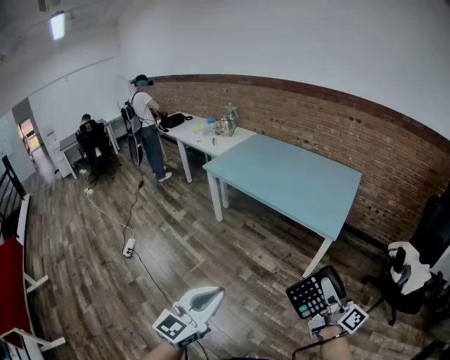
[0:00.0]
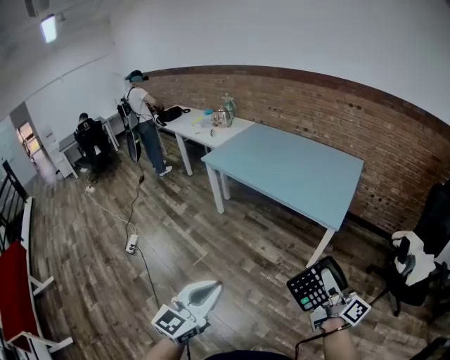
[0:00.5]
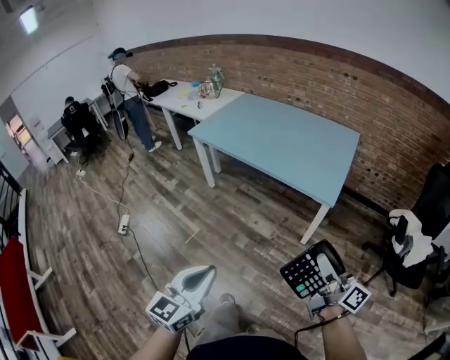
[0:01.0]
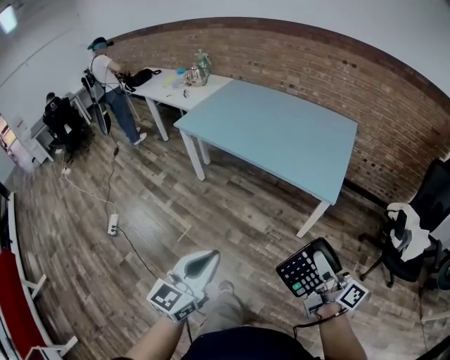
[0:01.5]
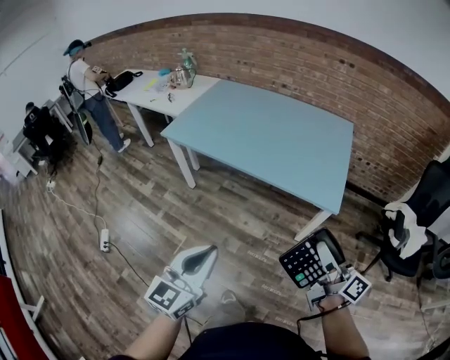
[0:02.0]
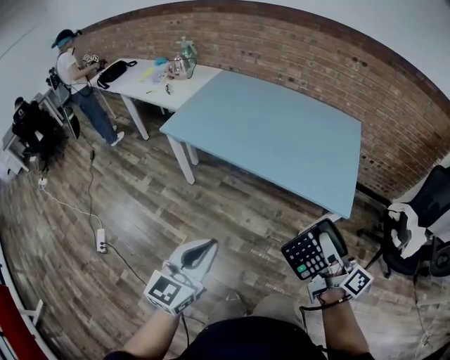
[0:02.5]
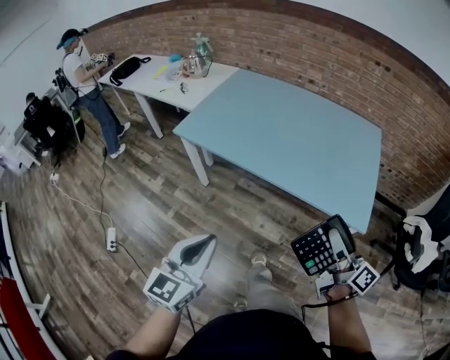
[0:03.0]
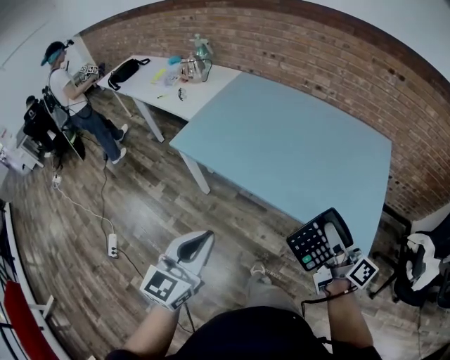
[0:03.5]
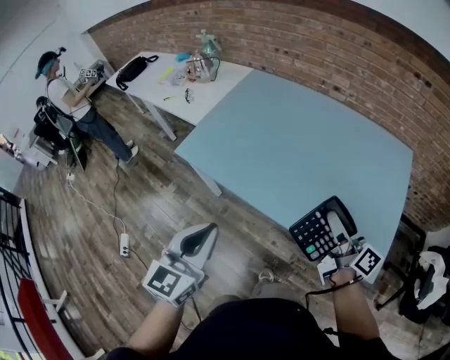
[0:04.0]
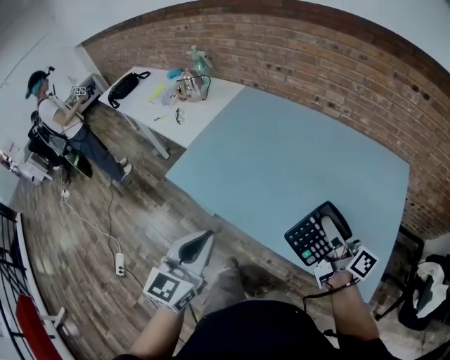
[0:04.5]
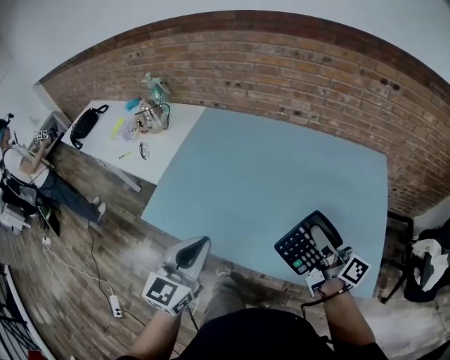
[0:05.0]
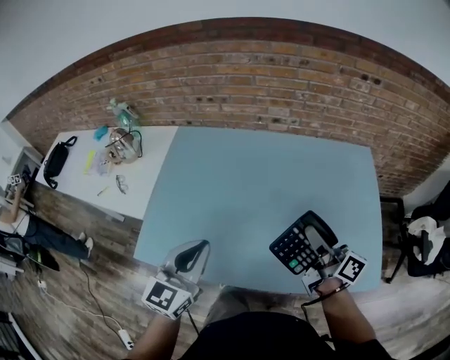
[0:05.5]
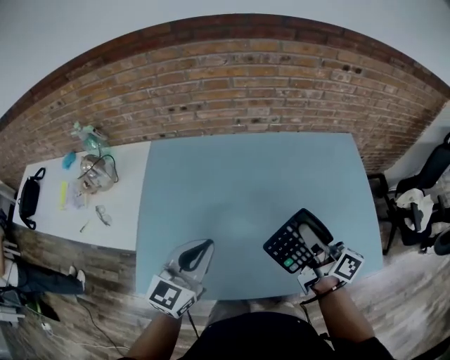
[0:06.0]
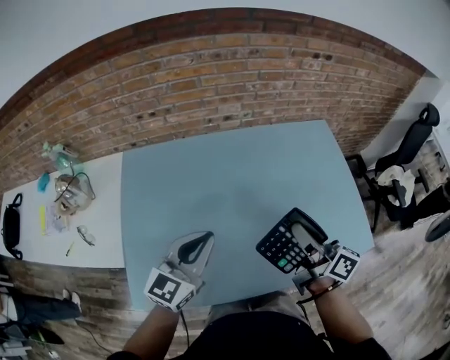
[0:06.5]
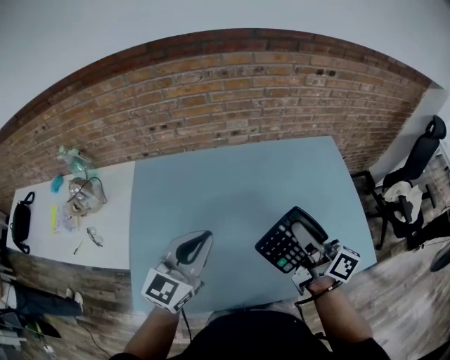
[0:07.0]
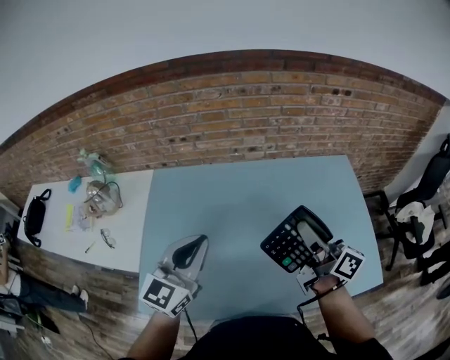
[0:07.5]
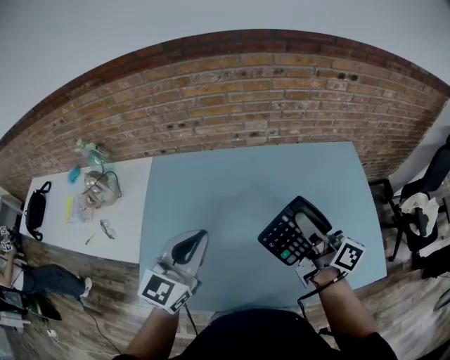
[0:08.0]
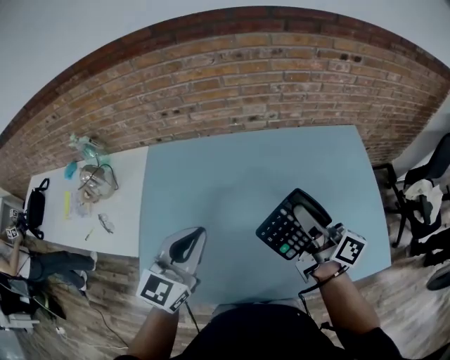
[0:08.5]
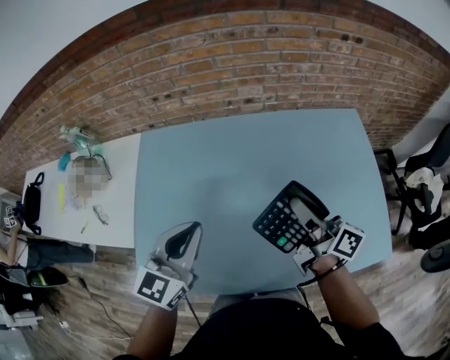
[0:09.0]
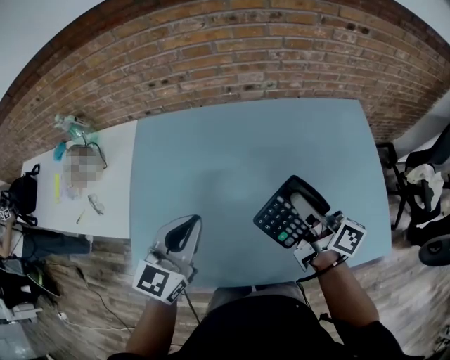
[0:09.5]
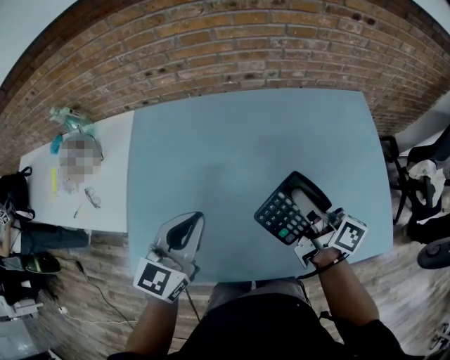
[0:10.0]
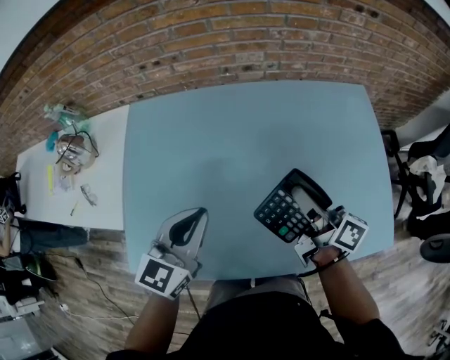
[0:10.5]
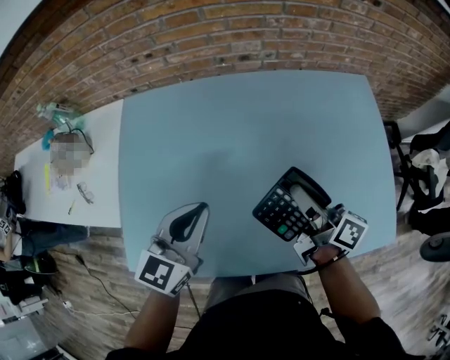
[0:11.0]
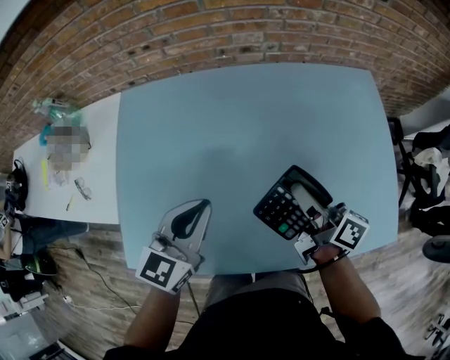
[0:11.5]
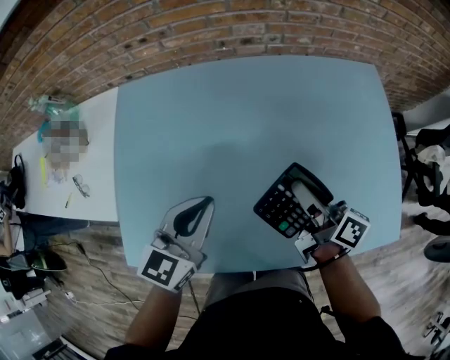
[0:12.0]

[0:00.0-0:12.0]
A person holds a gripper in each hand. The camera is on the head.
0:00.0 to 0:02.0: Both grippers travel together forward, roughly 20 cm.
0:02.0 to 0:04.0: The two grippers go approximately 40 cm forward.
0:04.0 to 0:06.0: The right gripper ends up about 20 cm from where it was, and changes its angle by about 30 degrees, while the left gripper moves about 35 cm, and swivels some 40 degrees.
0:06.0 to 0:08.0: The right gripper shifts about 5 cm forward. Meanwhile the left gripper shifts some 5 cm upward and forward.
0:08.0 to 0:10.0: Both grippers move downward, some 10 cm.
0:10.0 to 0:12.0: Both grippers travel together downward, about 5 cm.

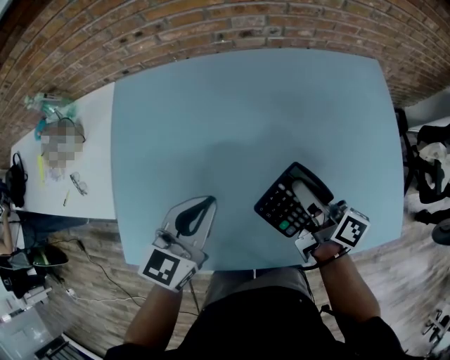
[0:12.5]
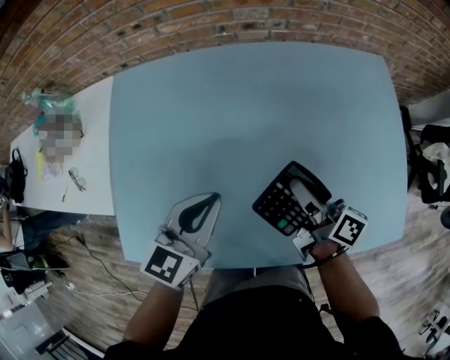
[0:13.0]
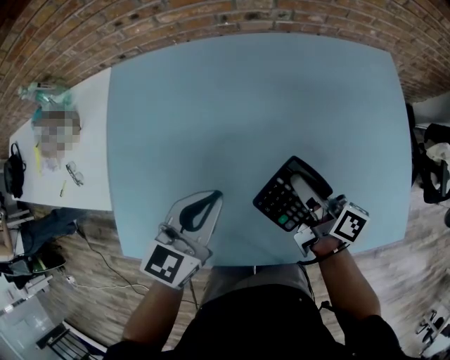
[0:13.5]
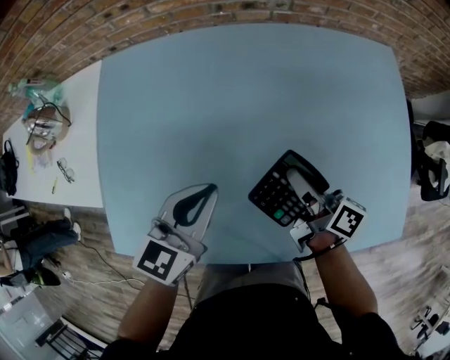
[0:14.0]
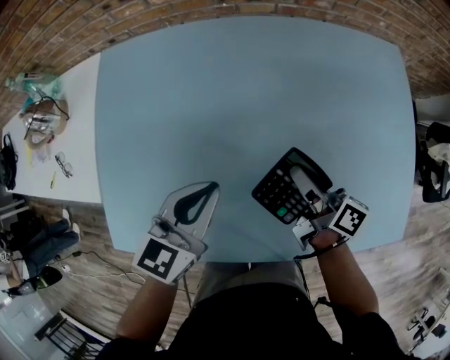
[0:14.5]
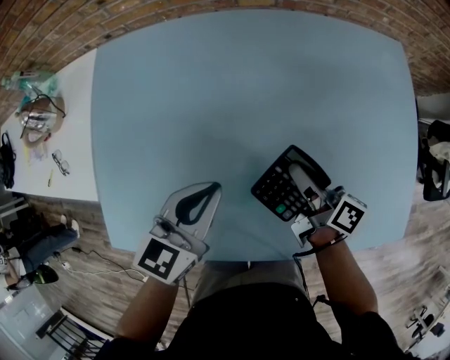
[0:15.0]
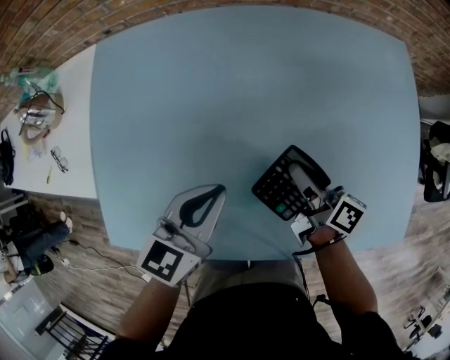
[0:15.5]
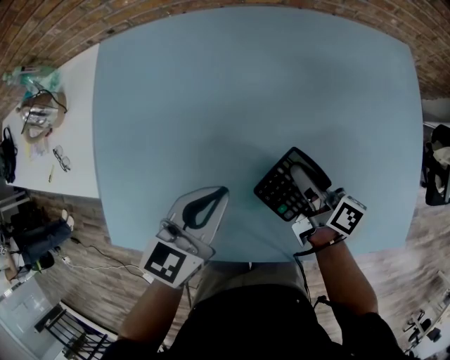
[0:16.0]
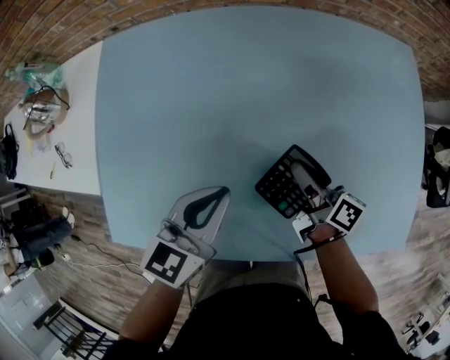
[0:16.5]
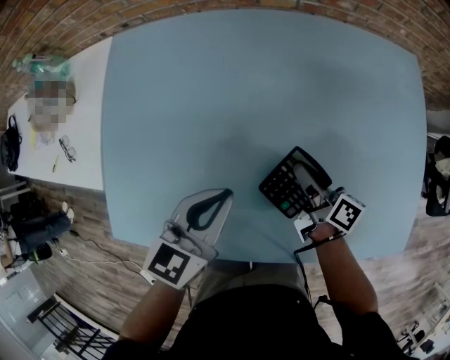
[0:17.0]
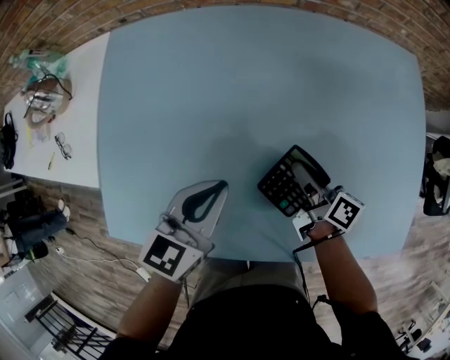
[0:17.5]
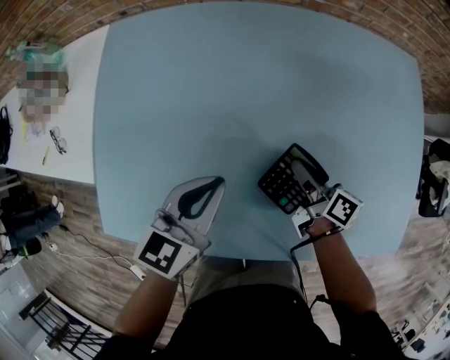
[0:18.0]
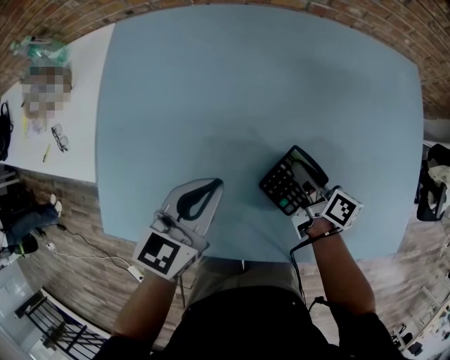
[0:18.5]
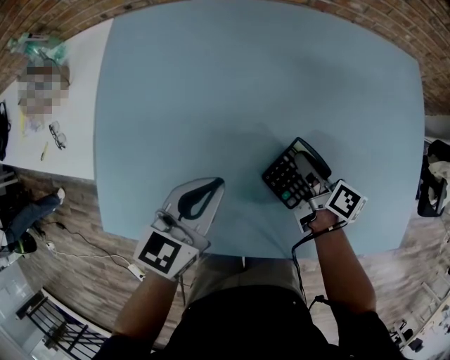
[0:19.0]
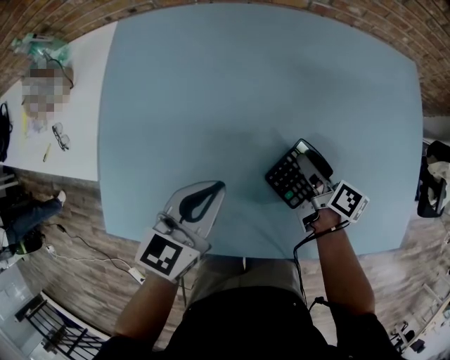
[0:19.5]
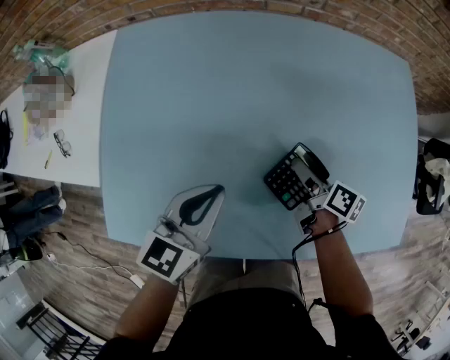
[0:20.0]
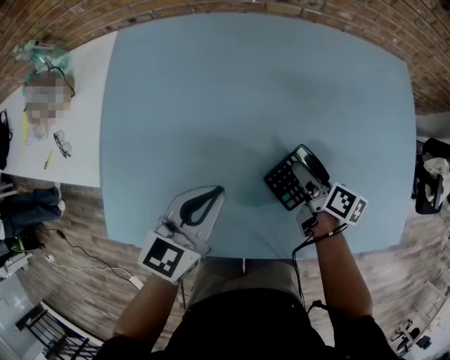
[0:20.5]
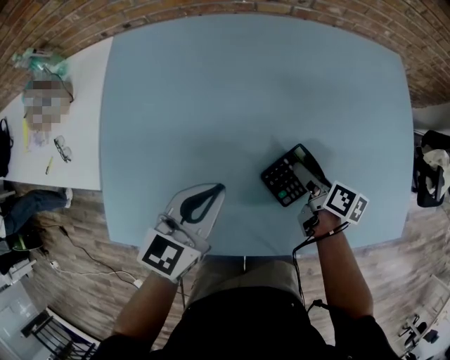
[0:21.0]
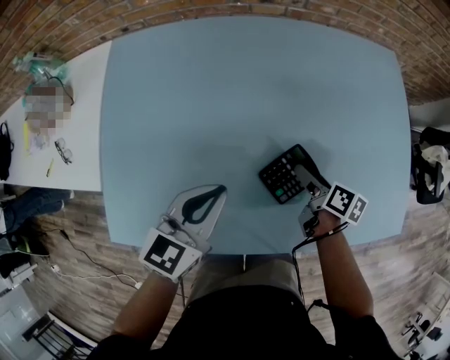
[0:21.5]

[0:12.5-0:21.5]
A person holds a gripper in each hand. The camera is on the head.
0:12.5 to 0:14.5: The right gripper moves downward, approximately 5 cm.
0:14.5 to 0:17.0: The right gripper moves downward, roughly 5 cm.
0:17.0 to 0:19.5: The grippers move only a little.
0:19.5 to 0:21.5: The right gripper ends up about 5 cm from where it was, and opens its fingers.

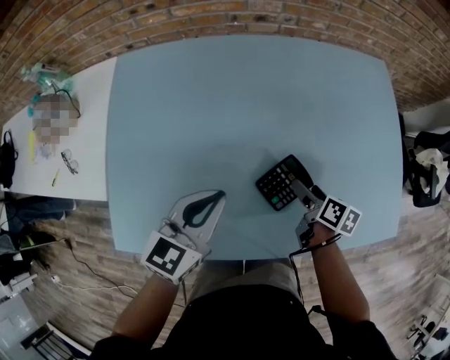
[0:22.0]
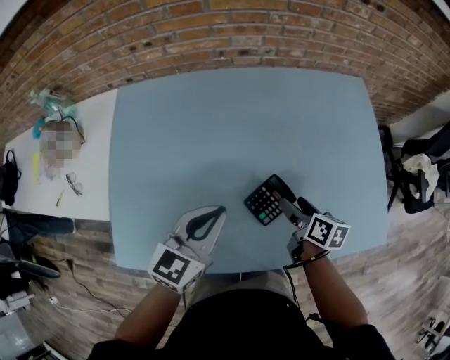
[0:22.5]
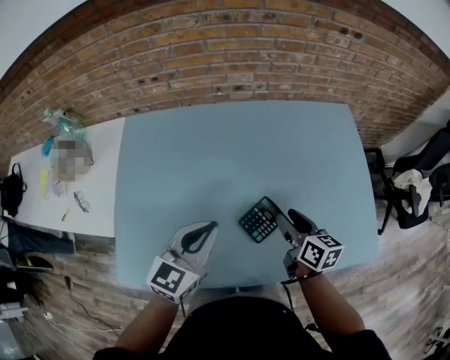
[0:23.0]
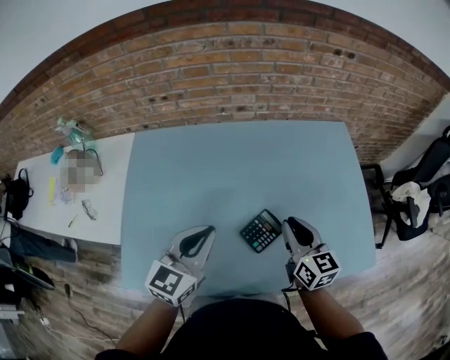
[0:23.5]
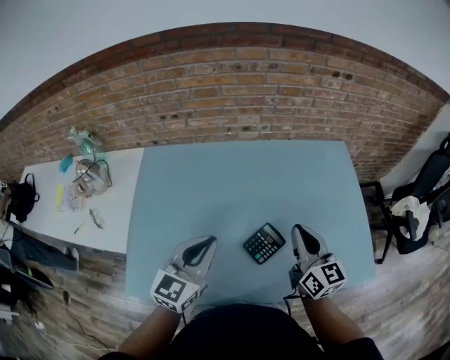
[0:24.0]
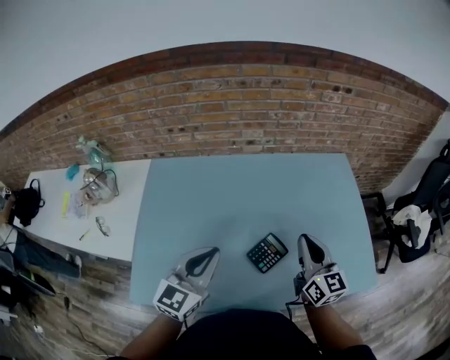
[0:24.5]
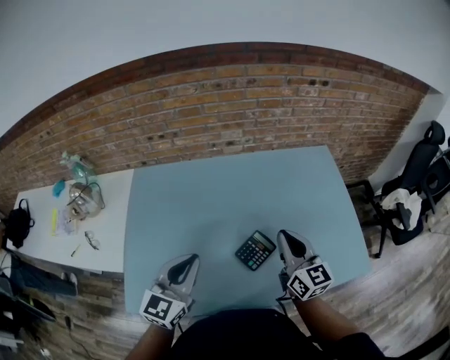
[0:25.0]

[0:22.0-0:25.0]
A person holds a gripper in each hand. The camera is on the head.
0:22.0 to 0:23.5: The left gripper heads upward, covering about 10 cm. The right gripper is displaced upward by about 20 cm, rotates roughly 50 degrees, and closes up.
0:23.5 to 0:25.0: The right gripper travels upward by approximately 5 cm. Meanwhile the left gripper moves roughly 5 cm.

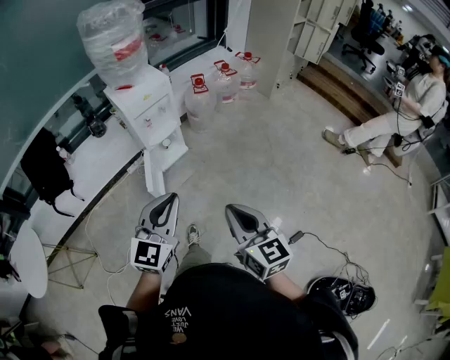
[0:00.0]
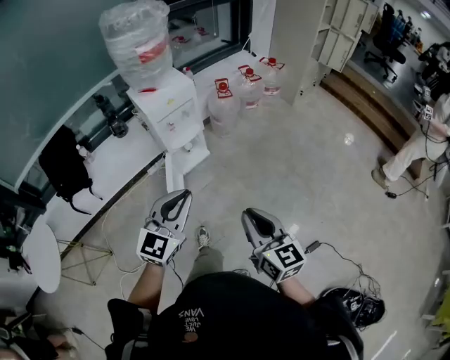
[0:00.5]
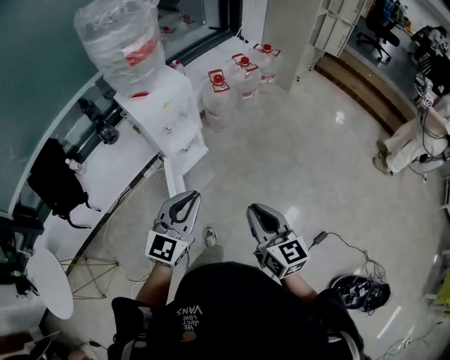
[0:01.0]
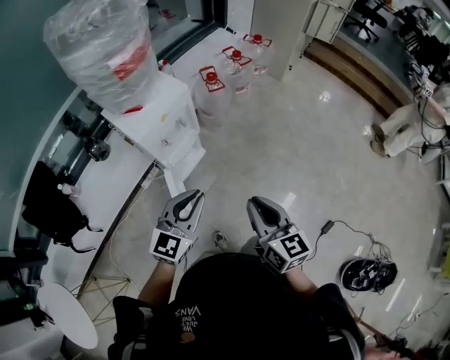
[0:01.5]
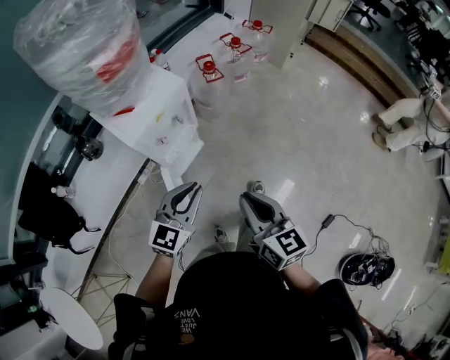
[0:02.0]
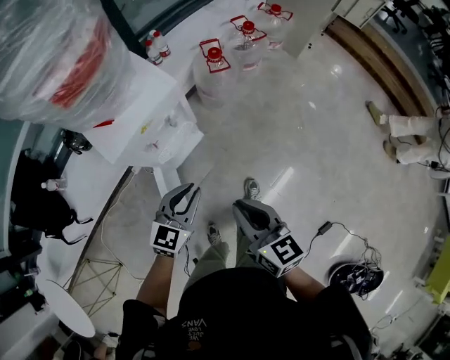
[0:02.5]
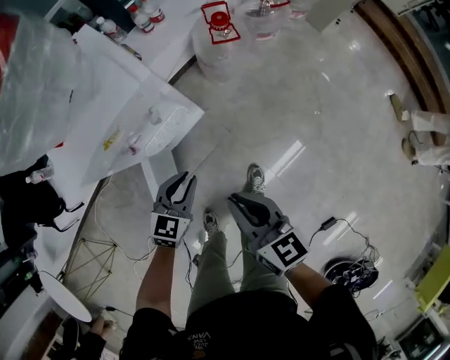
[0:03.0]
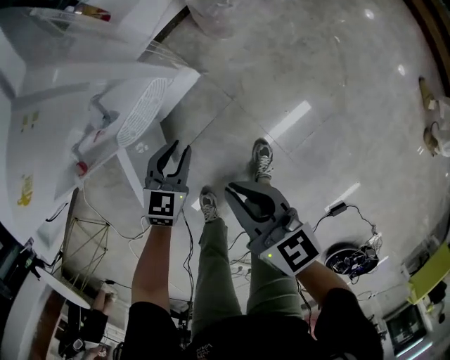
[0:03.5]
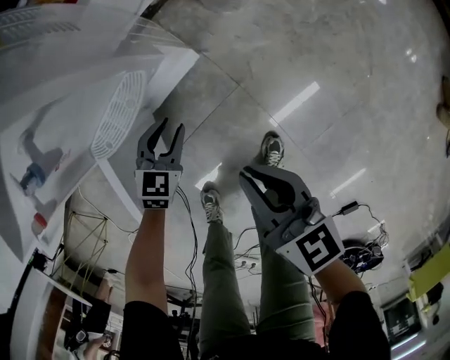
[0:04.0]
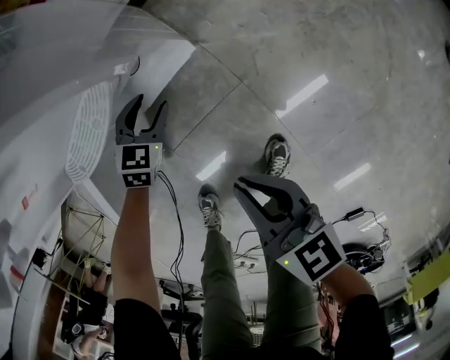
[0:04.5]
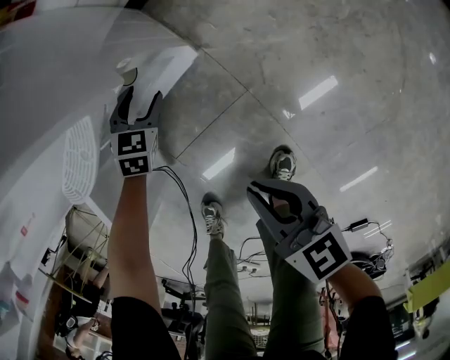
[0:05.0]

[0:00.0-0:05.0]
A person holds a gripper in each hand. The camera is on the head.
0:00.0 to 0:02.5: Both grippers are carried forward, about 50 cm. The left gripper heads downward, covering roughly 25 cm, and swivels approximately 20 degrees.
0:02.5 to 0:05.0: The two grippers go approximately 60 cm downward. The right gripper swivels some 30 degrees, while the left gripper angles its fingers downward, by about 30 degrees, and opens its fingers.
